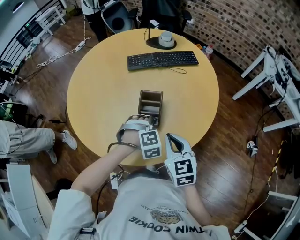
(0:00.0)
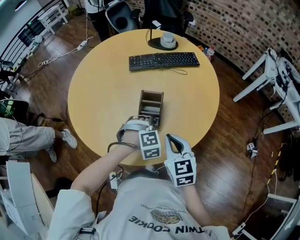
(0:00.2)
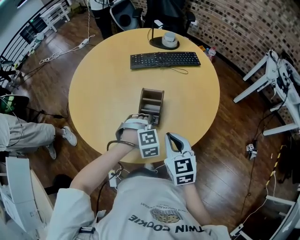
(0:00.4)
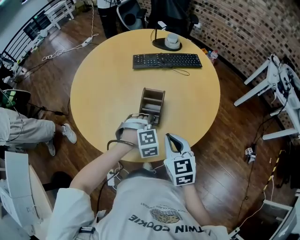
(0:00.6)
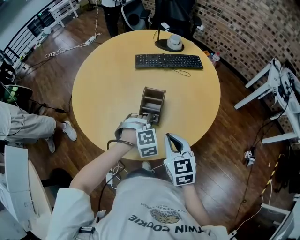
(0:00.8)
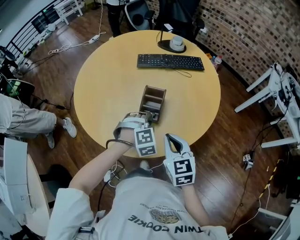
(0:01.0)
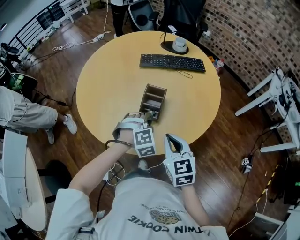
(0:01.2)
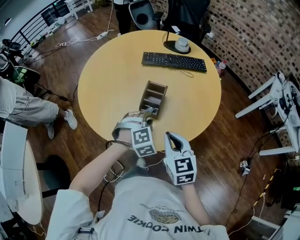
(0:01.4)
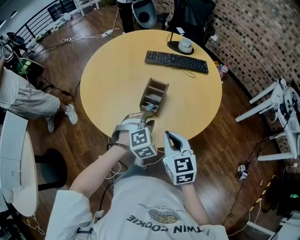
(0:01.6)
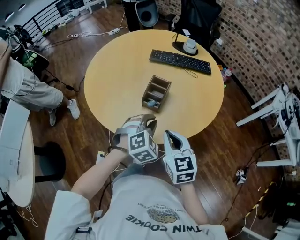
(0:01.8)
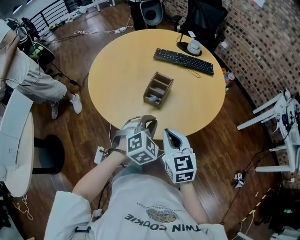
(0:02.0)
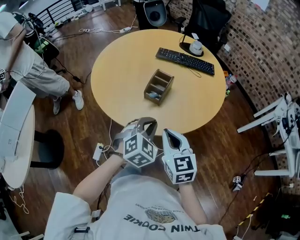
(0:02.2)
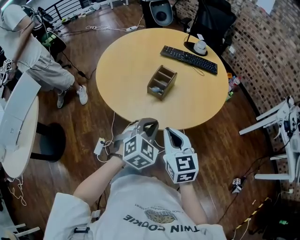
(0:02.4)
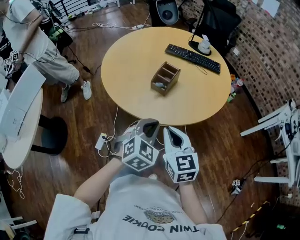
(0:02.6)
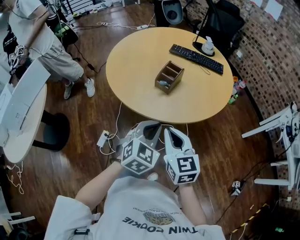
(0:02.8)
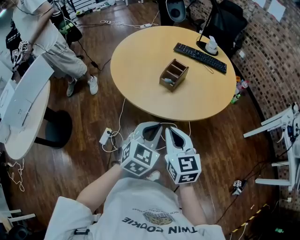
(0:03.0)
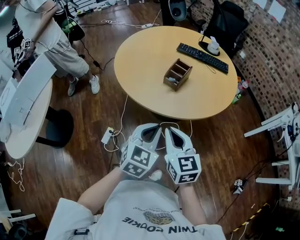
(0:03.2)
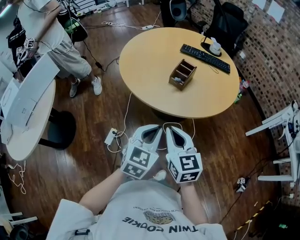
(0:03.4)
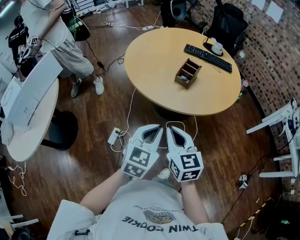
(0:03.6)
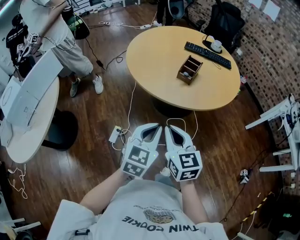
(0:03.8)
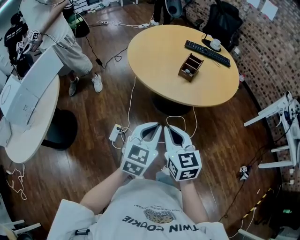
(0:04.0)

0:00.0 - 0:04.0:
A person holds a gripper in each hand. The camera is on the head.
0:00.0 - 0:01.4: The right gripper moves backward, about 5 cm. Meanwhile the left gripper is displaced upward and backward by roughly 10 cm.
0:01.4 - 0:02.6: The left gripper moves backward and upward, about 20 cm, changes its angle by approximately 40 degrees, and closes up. Meanwhile the right gripper goes approximately 15 cm backward.
0:02.6 - 0:04.0: Both grippers travel together to the left and backward, approximately 25 cm. The left gripper turns by some 30 degrees.

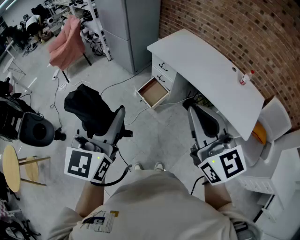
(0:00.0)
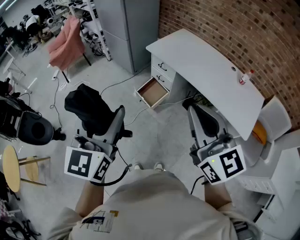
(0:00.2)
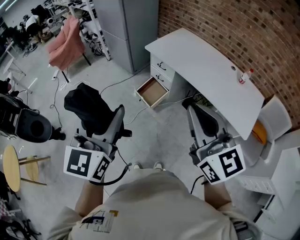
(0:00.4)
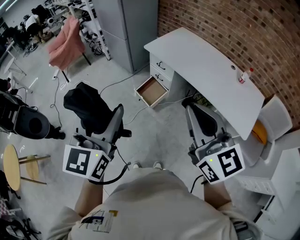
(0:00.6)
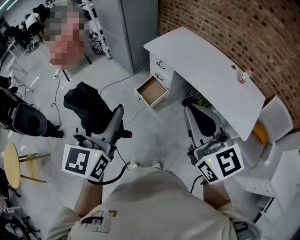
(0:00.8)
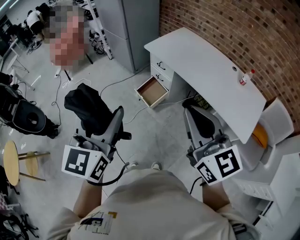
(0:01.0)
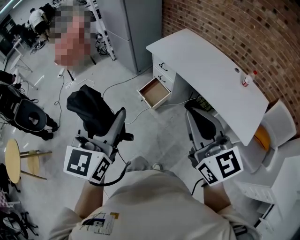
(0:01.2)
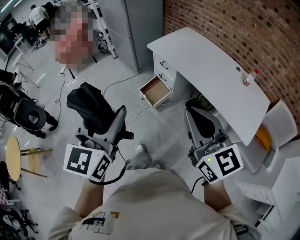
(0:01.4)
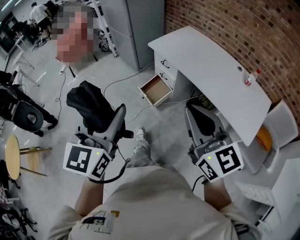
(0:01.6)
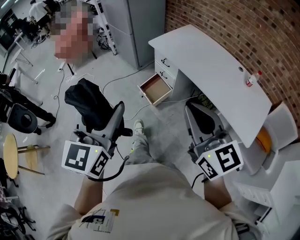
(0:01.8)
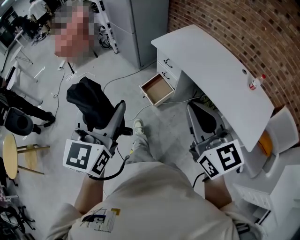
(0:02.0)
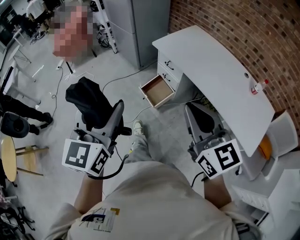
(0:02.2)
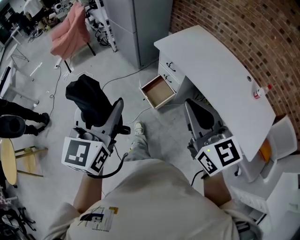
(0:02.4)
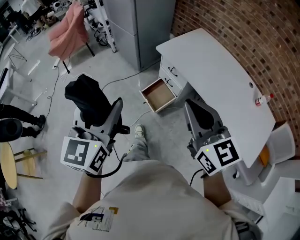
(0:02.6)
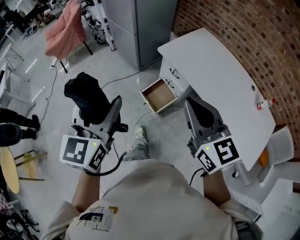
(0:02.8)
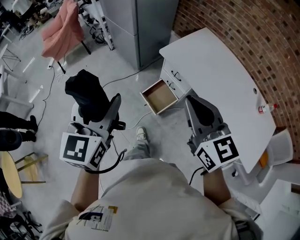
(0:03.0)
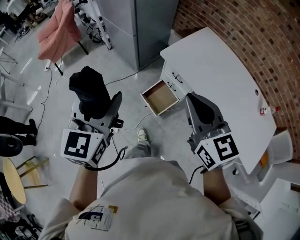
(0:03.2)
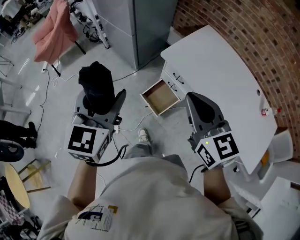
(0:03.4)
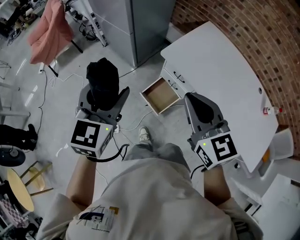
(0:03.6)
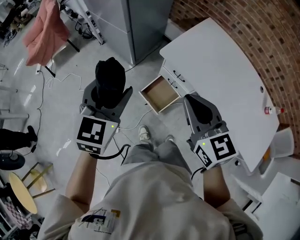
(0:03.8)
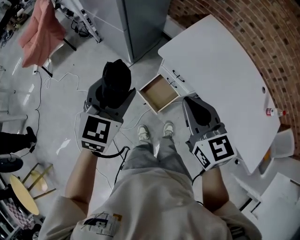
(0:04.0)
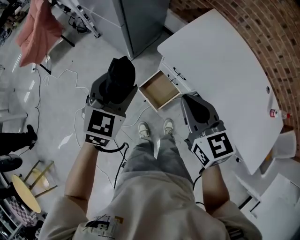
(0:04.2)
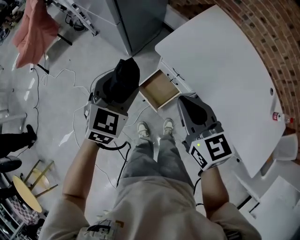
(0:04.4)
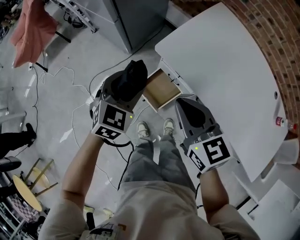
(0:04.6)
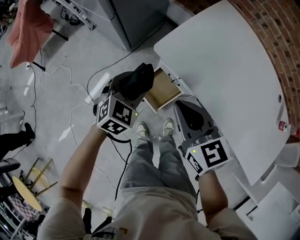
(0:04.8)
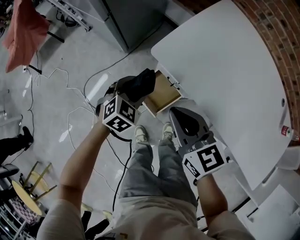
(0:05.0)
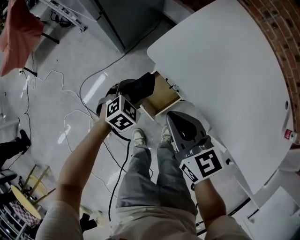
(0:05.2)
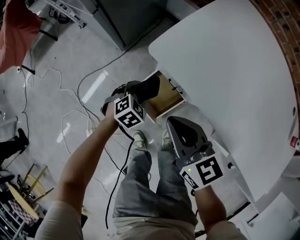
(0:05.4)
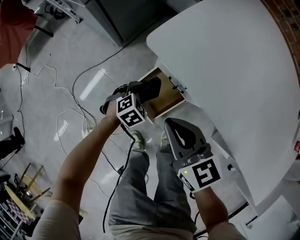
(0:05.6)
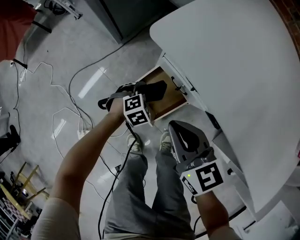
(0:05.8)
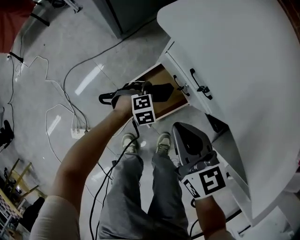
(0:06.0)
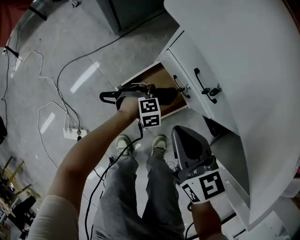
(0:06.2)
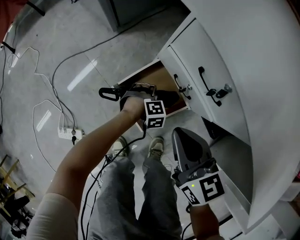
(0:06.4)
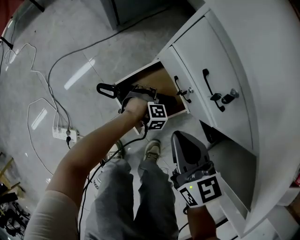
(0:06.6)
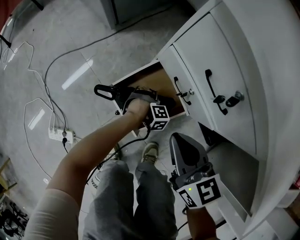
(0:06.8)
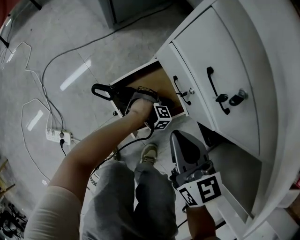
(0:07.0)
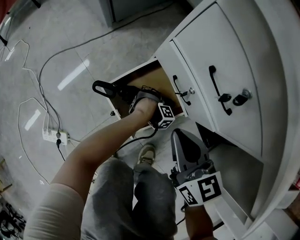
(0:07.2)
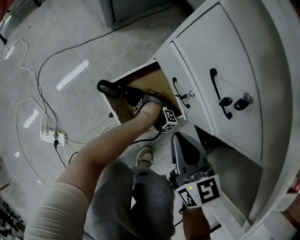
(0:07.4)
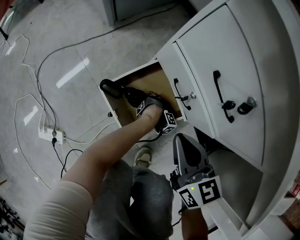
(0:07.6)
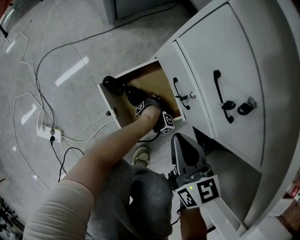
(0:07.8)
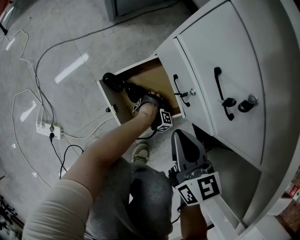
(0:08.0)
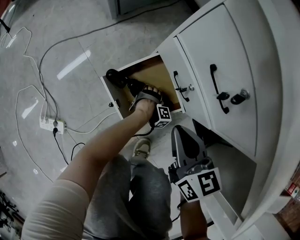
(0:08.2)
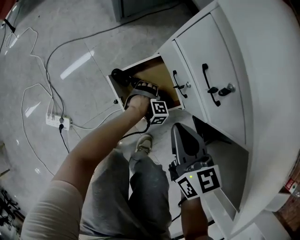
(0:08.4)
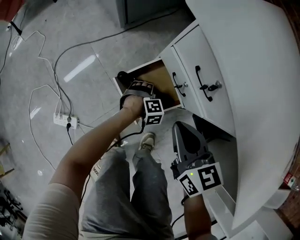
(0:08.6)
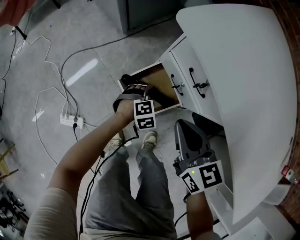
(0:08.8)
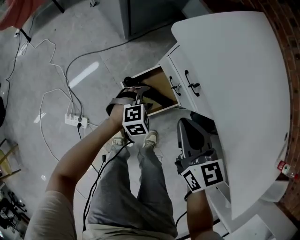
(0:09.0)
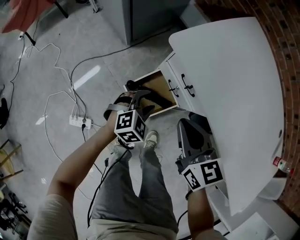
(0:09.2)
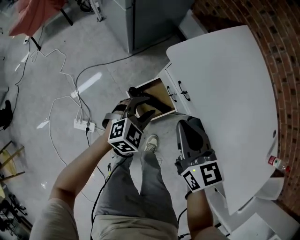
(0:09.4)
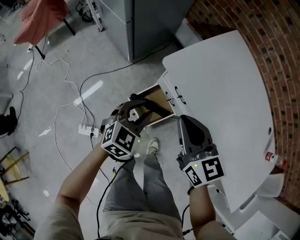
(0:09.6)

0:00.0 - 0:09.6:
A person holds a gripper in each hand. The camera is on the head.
0:00.0 - 0:01.6: The right gripper goes roughly 10 cm to the right and downward. The left gripper goes some 10 cm to the right.
0:01.6 - 0:03.2: The pair of grippers is taken forward, some 40 cm.
0:03.2 - 0:04.8: The two grippers go some 40 cm downward and forward. The left gripper tips its fingers downward by some 30 degrees.
0:04.8 - 0:06.4: The left gripper goes roughly 60 cm downward, and tilts its fingers some 30 degrees downward; the right gripper heads downward, covering roughly 35 cm.
0:06.4 - 0:08.0: The right gripper travels downward by roughly 10 cm, while the left gripper is displaced downward by roughly 20 cm, and changes its angle by roughly 30 degrees.
0:08.0 - 0:09.6: The right gripper is displaced upward by some 50 cm. Meanwhile the left gripper moves upward, some 70 cm, points its fingers roughly 50 degrees further upward, and closes up.

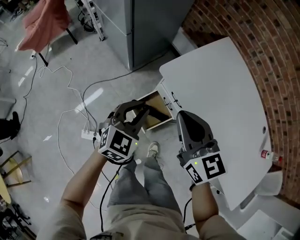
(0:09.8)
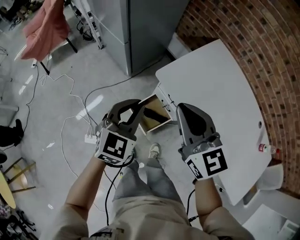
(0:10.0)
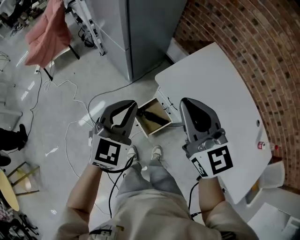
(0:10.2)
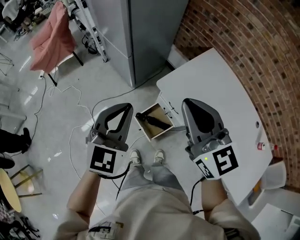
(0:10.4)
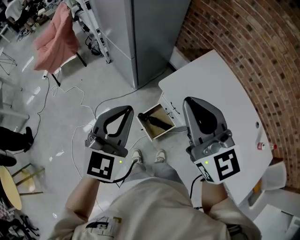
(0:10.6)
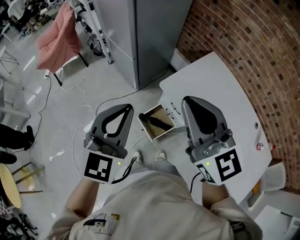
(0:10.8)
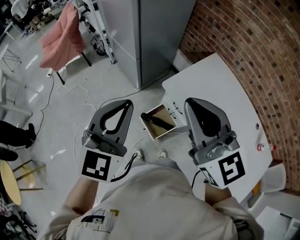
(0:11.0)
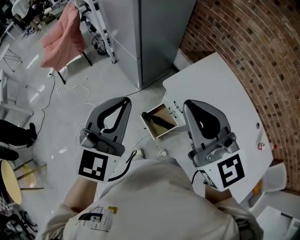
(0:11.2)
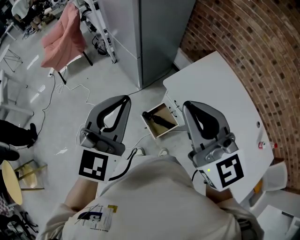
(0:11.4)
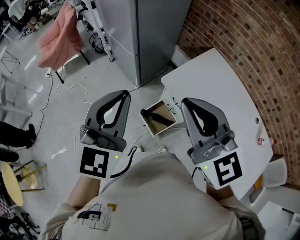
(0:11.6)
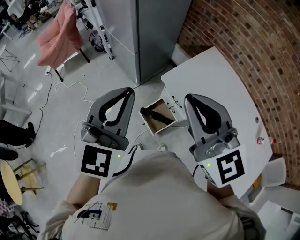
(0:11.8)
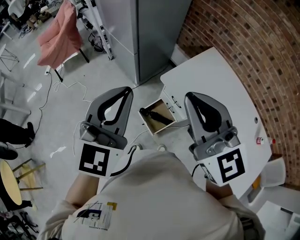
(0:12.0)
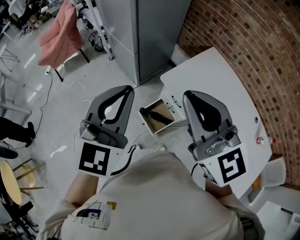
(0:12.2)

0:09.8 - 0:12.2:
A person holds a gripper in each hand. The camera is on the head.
0:09.8 - 0:11.0: Both grippers move upward, about 30 cm. The left gripper turns by about 20 degrees; the right gripper changes its angle by roughly 20 degrees.
0:11.0 - 0:12.2: The grippers make only small movements.

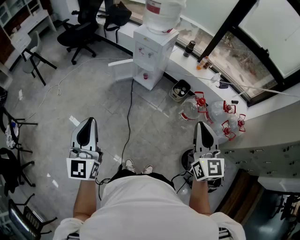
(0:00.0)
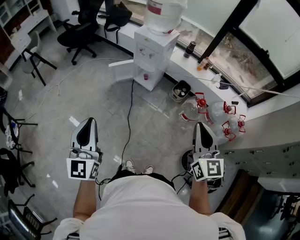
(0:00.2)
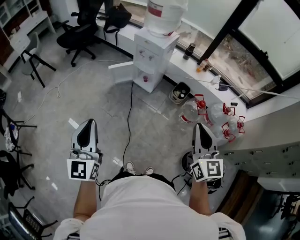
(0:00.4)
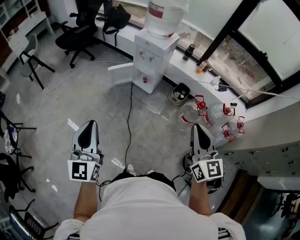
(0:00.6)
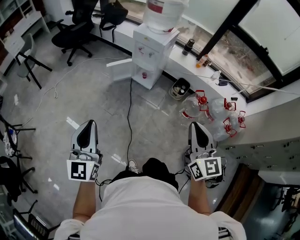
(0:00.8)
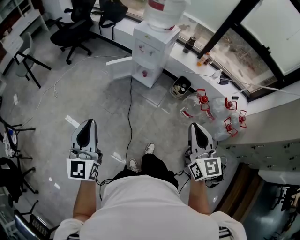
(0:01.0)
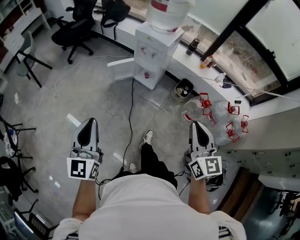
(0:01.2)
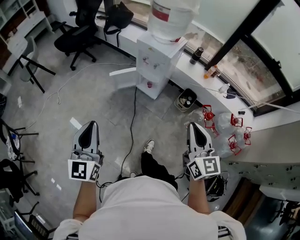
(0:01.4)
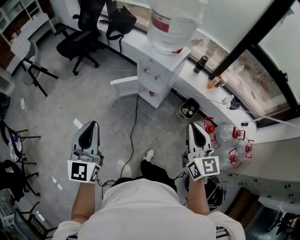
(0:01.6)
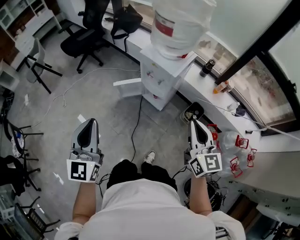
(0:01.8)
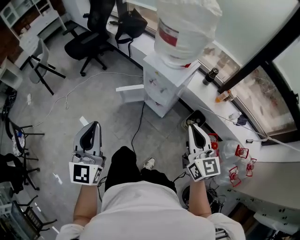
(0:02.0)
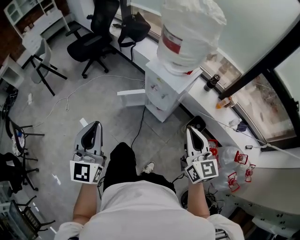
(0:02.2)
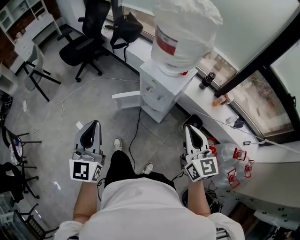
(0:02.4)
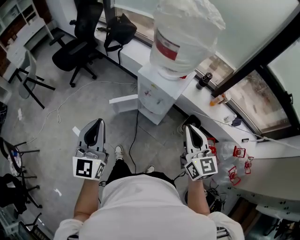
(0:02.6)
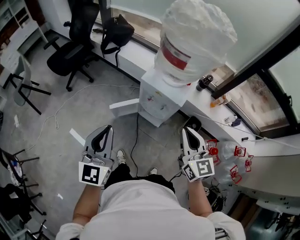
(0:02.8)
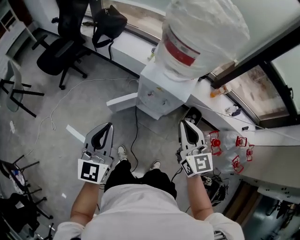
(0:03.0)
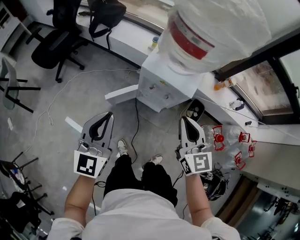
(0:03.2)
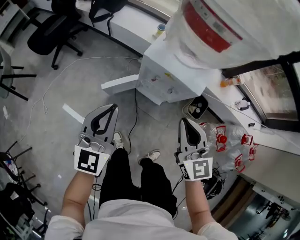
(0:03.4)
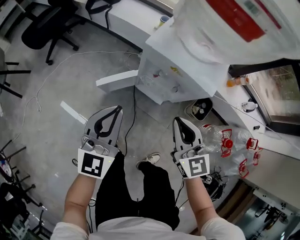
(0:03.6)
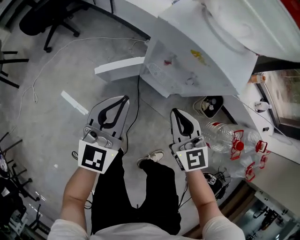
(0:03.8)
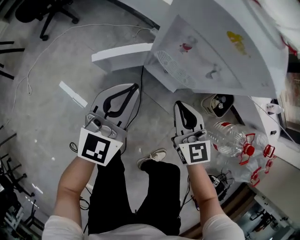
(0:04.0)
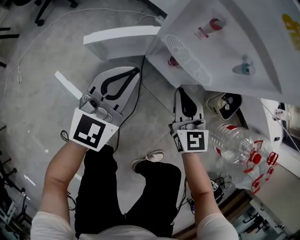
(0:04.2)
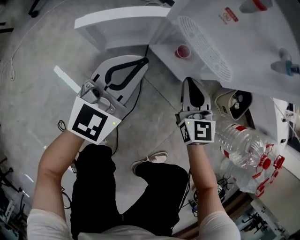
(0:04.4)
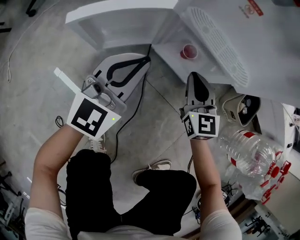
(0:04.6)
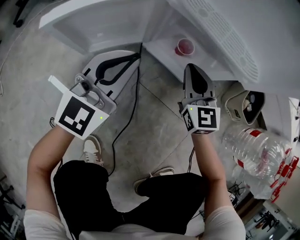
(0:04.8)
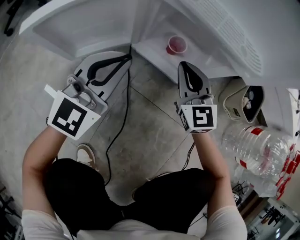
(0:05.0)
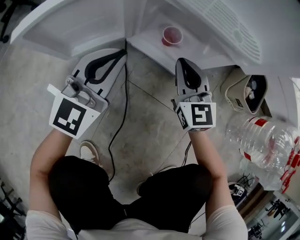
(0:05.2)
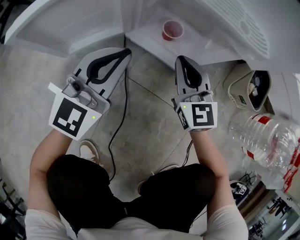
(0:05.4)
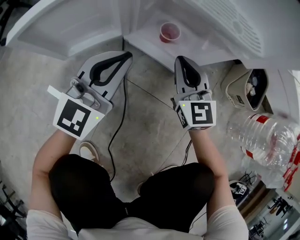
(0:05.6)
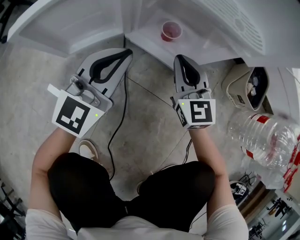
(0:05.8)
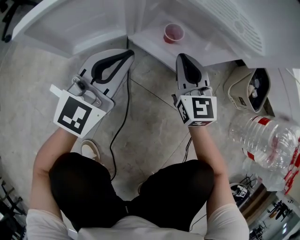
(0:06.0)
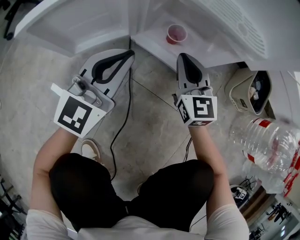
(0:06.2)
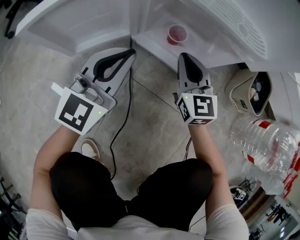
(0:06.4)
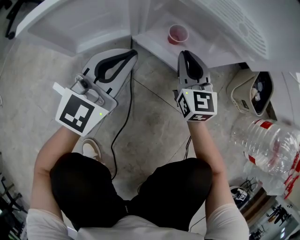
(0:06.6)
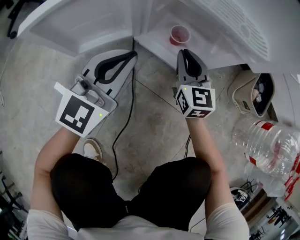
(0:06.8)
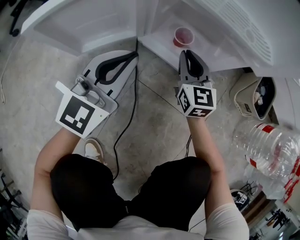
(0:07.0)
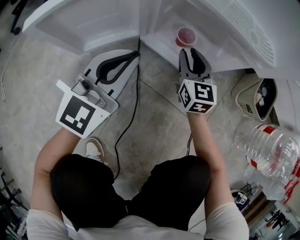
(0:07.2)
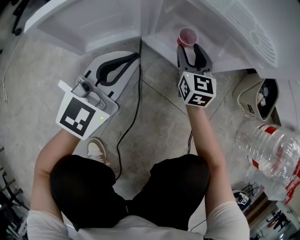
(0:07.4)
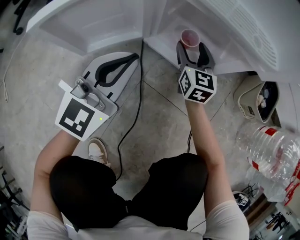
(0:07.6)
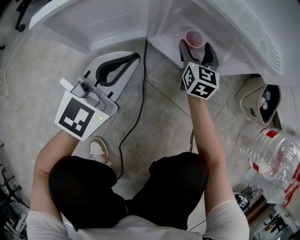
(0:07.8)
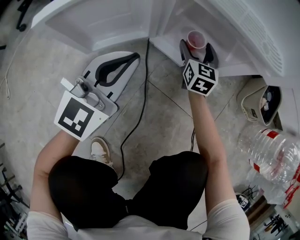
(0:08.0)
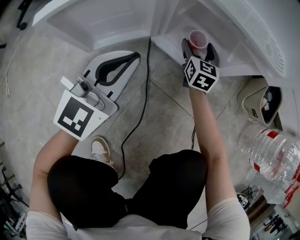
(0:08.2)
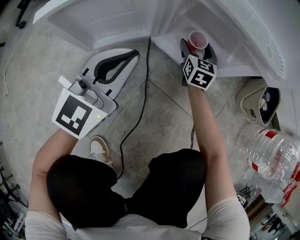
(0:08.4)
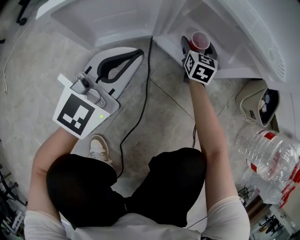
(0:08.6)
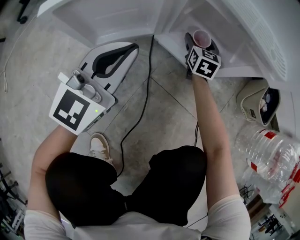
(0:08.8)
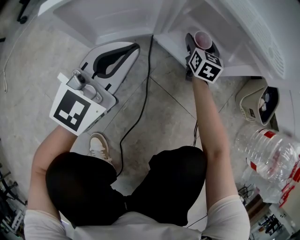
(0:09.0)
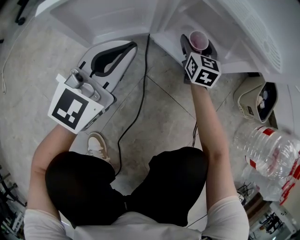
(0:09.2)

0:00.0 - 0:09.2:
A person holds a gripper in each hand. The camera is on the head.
0:00.0 - 0:01.6: Both grippers travel together forward, about 25 cm.
0:01.6 - 0:03.0: The left gripper moves forward, some 30 cm; the right gripper is displaced forward and to the left by about 30 cm.
0:03.0 - 0:04.6: Both grippers travel together downward, some 70 cm. The left gripper rotates some 20 degrees.
0:04.6 - 0:06.2: Both grippers move downward, some 10 cm.
0:06.2 - 0:07.6: The right gripper goes approximately 5 cm forward, and opens up.
